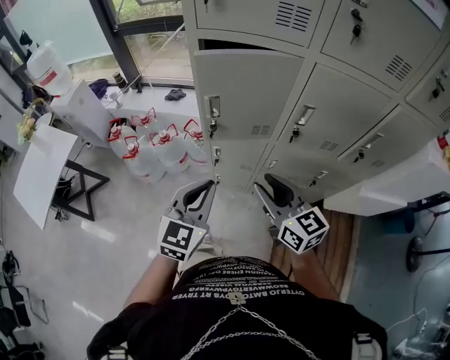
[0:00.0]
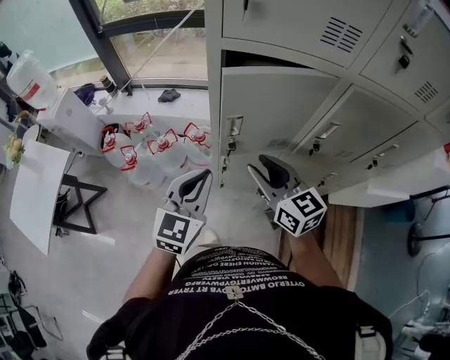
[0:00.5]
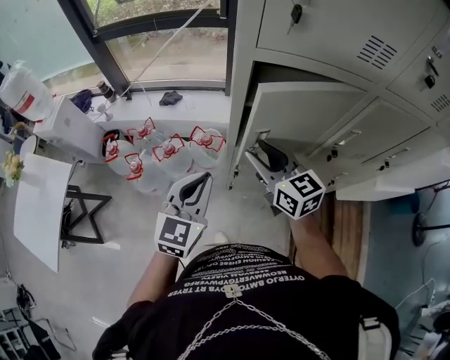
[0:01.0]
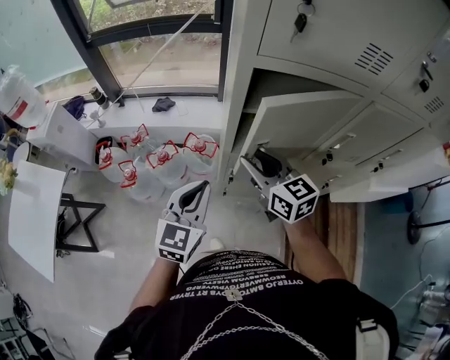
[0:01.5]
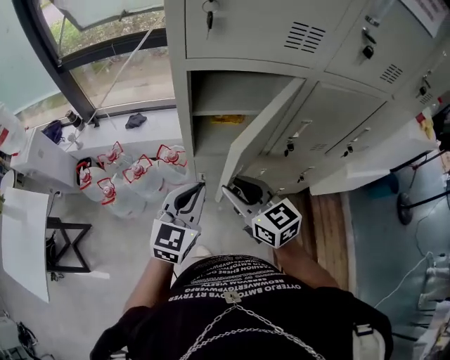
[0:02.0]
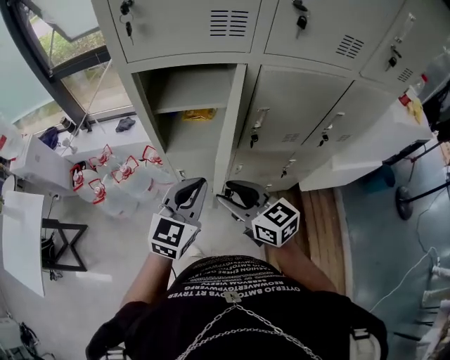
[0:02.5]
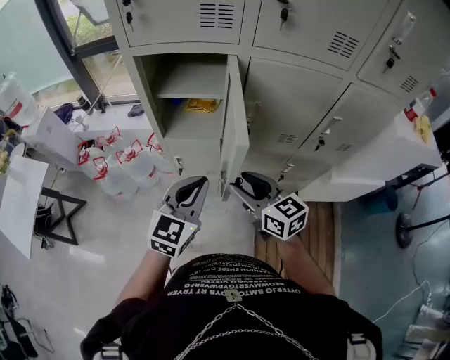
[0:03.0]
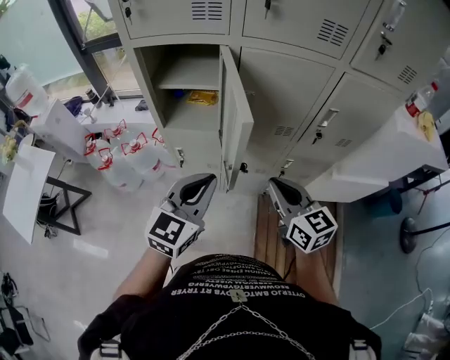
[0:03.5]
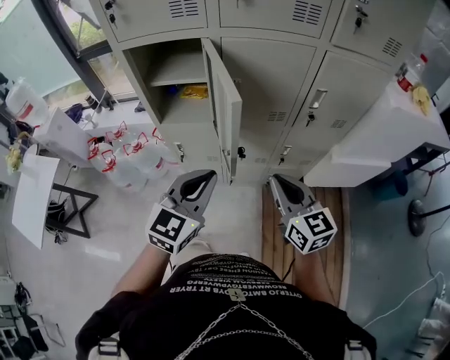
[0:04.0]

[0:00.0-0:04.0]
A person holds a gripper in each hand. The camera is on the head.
0:00.0 to 0:02.0: The right gripper shifts approximately 20 cm to the left and forward, while the left gripper shifts some 15 cm forward and to the left.
0:02.0 to 0:04.0: Both grippers travel together to the right and backward, approximately 35 cm. The right gripper closes its fingers.

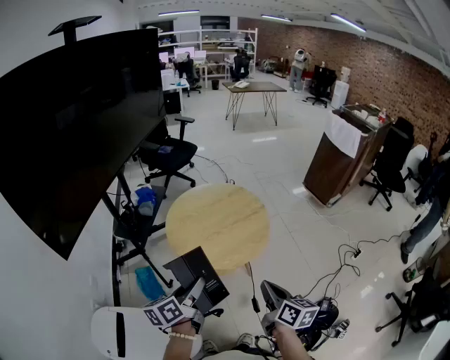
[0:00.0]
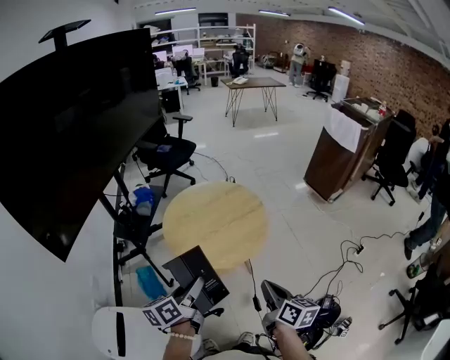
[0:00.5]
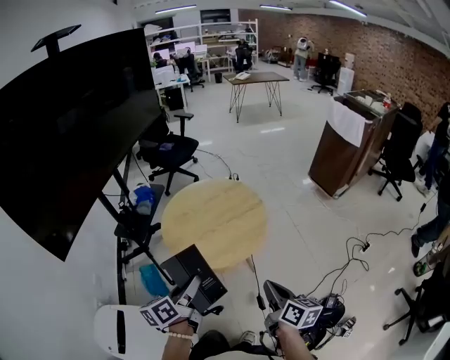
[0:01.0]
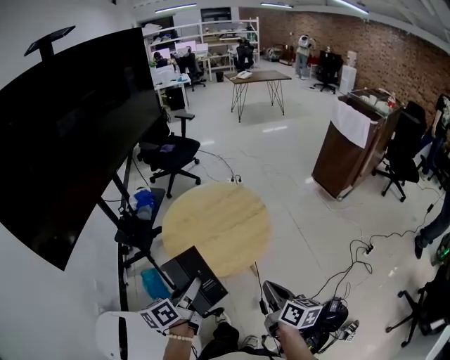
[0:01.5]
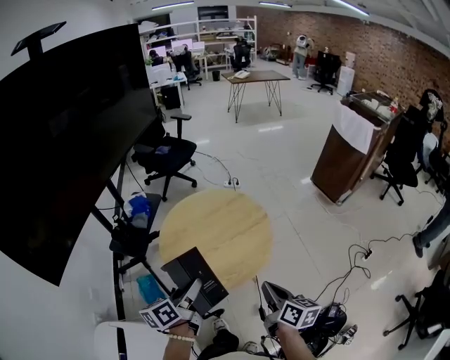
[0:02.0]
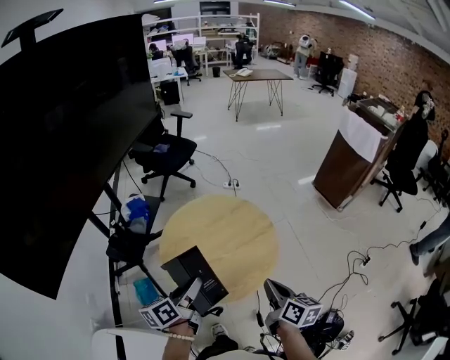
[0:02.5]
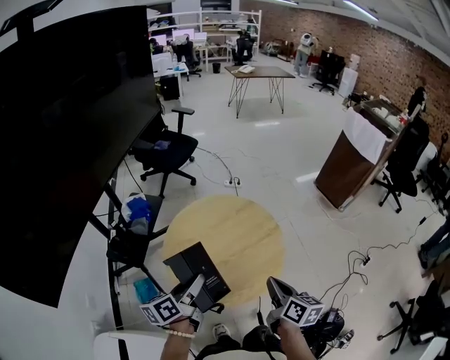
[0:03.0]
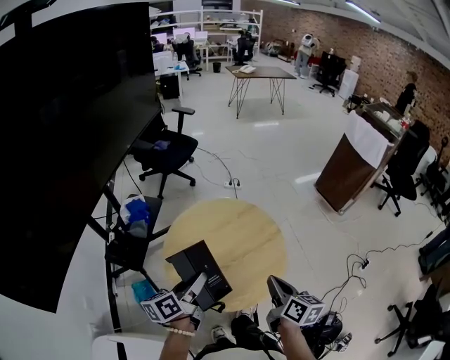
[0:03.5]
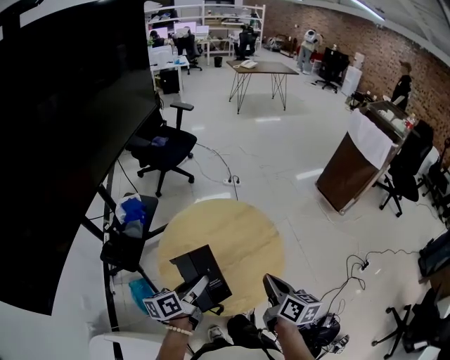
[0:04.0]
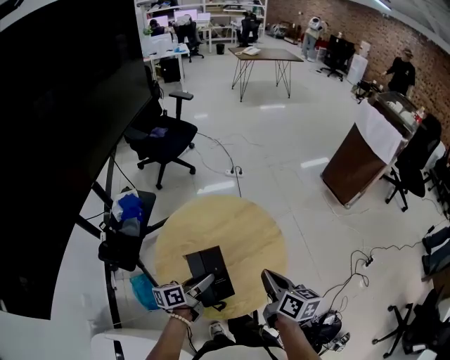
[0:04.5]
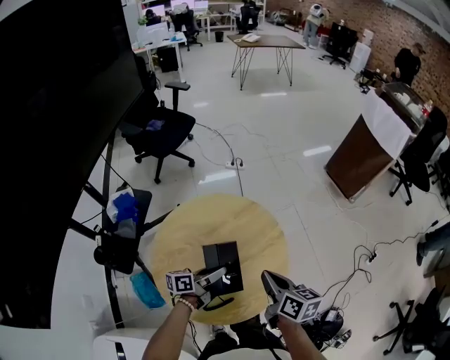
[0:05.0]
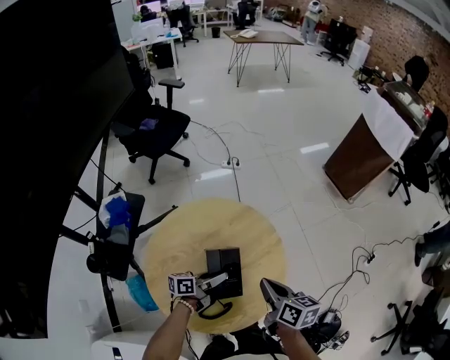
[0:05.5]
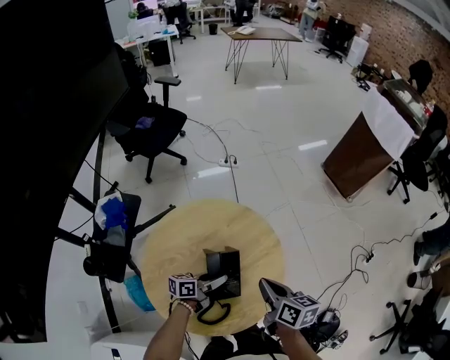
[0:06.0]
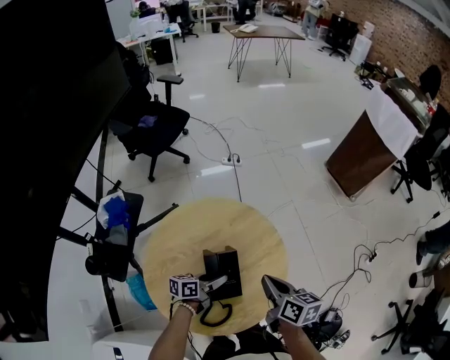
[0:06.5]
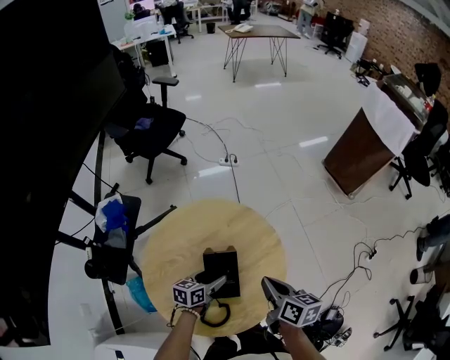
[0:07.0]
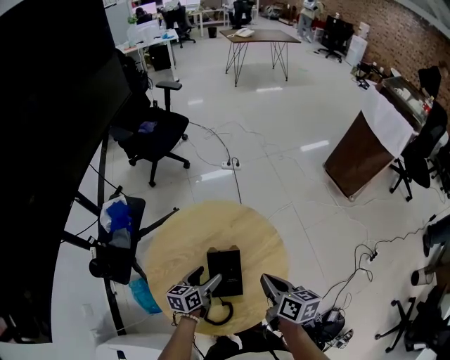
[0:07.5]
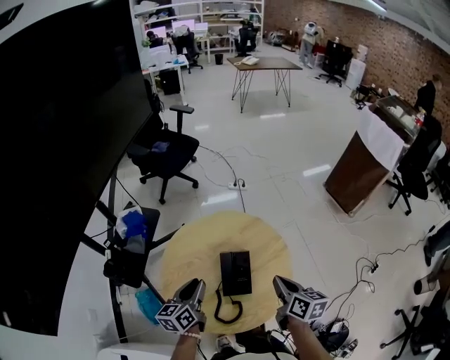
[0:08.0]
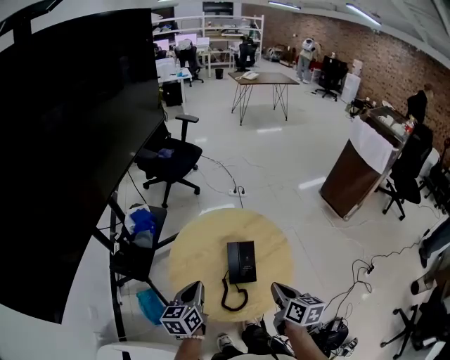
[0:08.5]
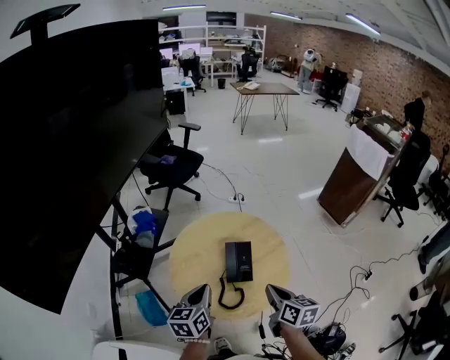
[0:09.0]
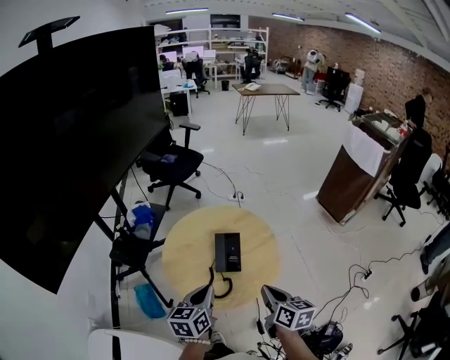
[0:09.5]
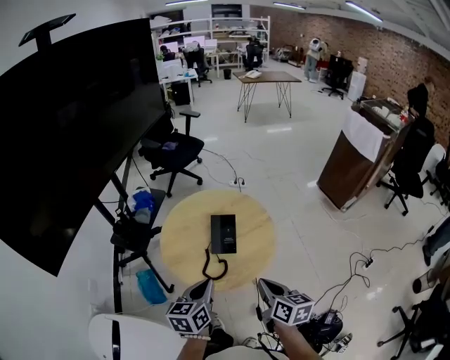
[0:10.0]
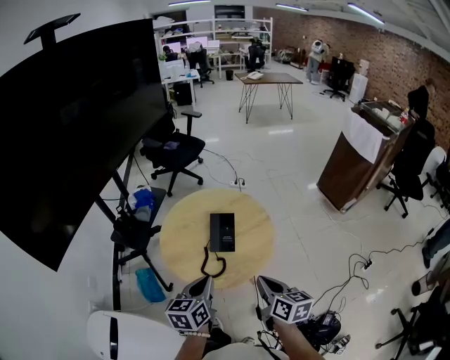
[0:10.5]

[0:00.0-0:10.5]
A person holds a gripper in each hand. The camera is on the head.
0:00.0 to 0:02.0: The grippers both shift forward by some 10 cm.
0:02.0 to 0:04.0: The grippers both shift forward by roughly 15 cm.
0:04.0 to 0:06.5: The right gripper travels forward and downward by about 10 cm. Meanwhile the left gripper is displaced downward and forward by about 25 cm, and swivels about 30 degrees.
0:06.5 to 0:08.5: The right gripper moves backward, about 10 cm; the left gripper is displaced upward, to the left and backward by approximately 25 cm, rotates about 50 degrees, and closes up.
0:08.5 to 0:10.5: The right gripper goes approximately 10 cm backward. Meanwhile the left gripper travels backward and to the right by about 20 cm.

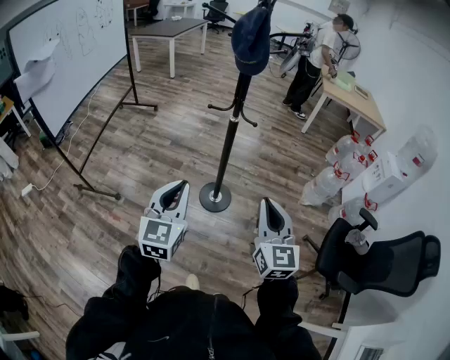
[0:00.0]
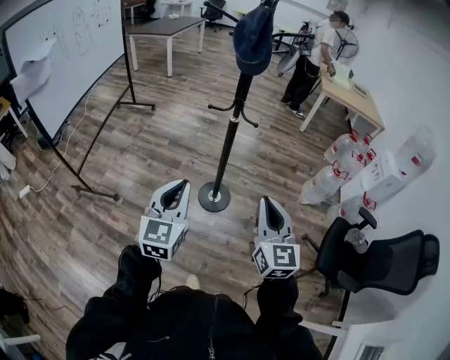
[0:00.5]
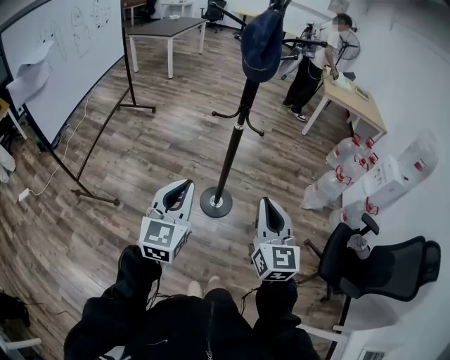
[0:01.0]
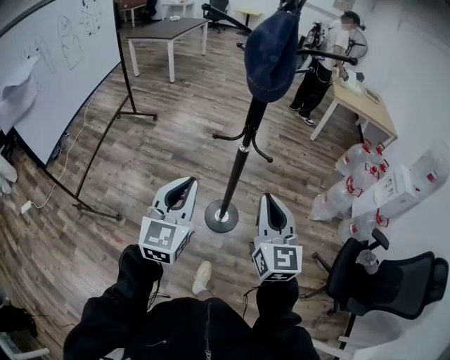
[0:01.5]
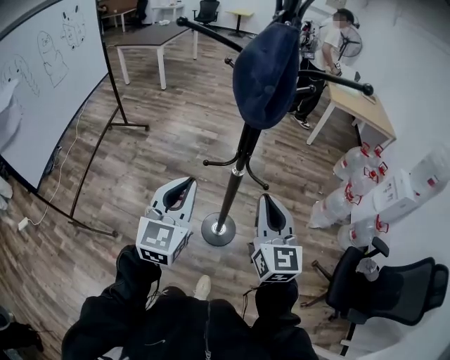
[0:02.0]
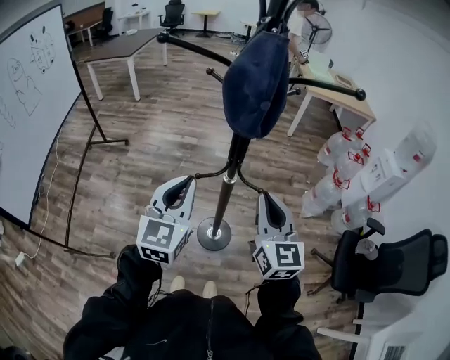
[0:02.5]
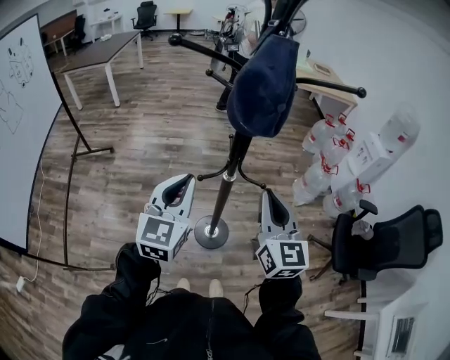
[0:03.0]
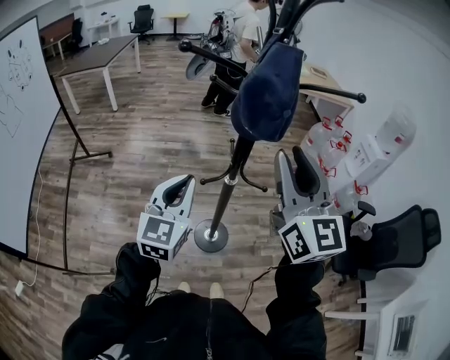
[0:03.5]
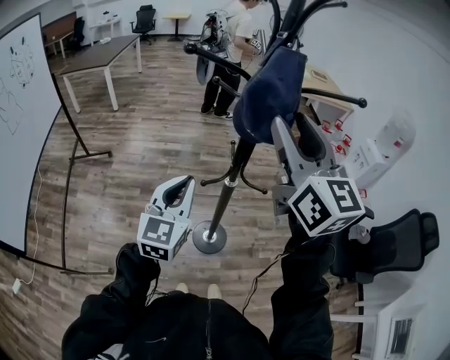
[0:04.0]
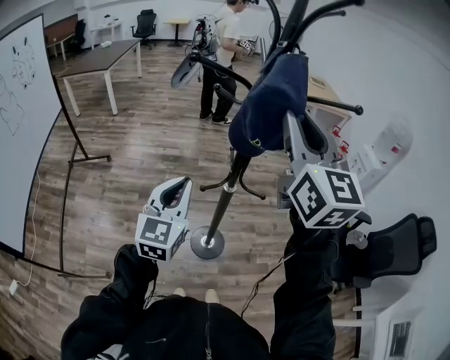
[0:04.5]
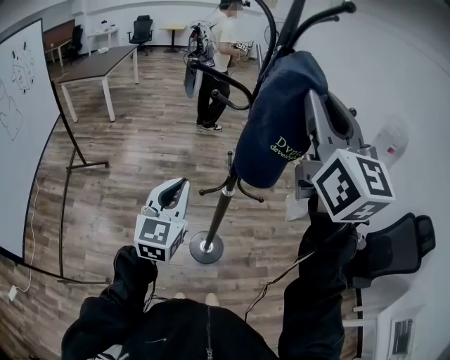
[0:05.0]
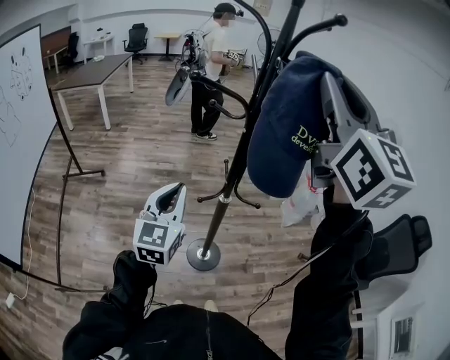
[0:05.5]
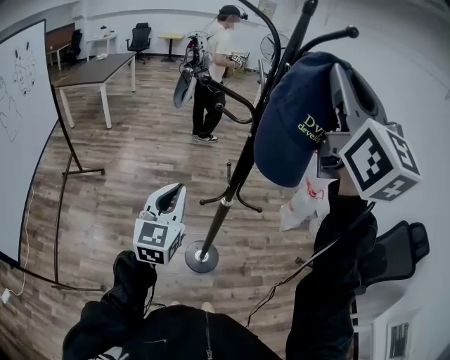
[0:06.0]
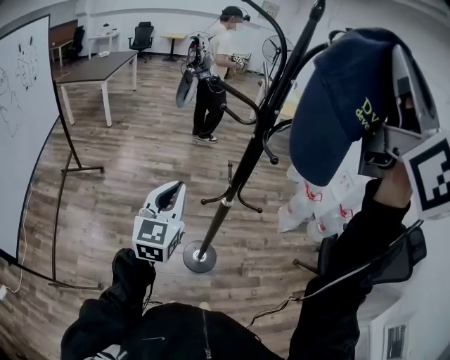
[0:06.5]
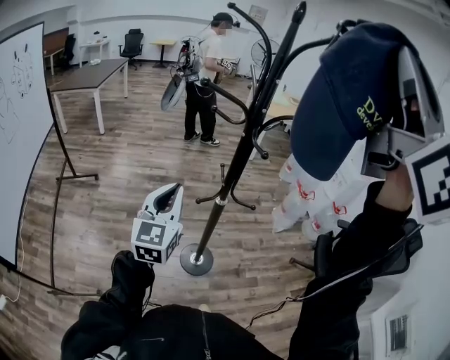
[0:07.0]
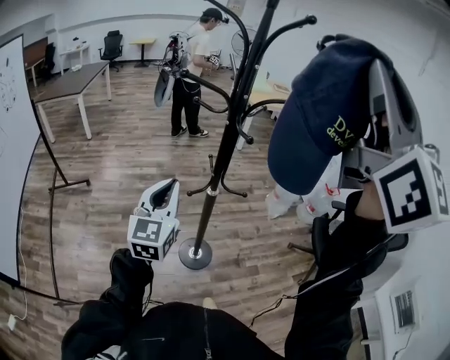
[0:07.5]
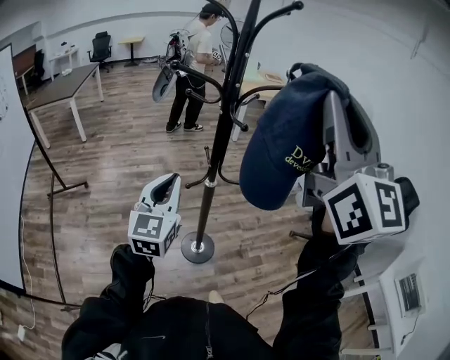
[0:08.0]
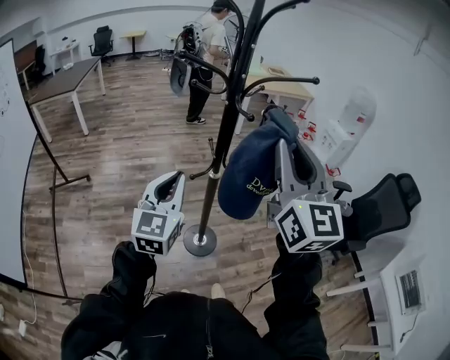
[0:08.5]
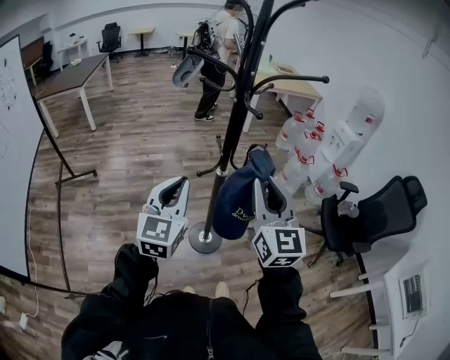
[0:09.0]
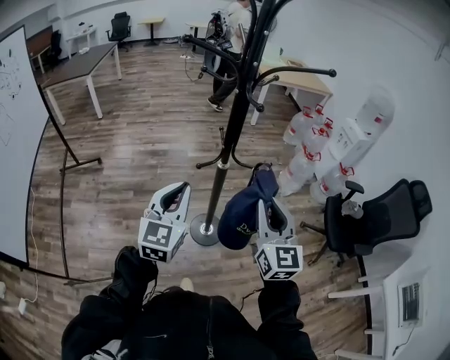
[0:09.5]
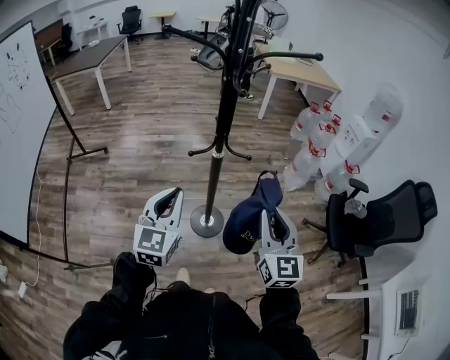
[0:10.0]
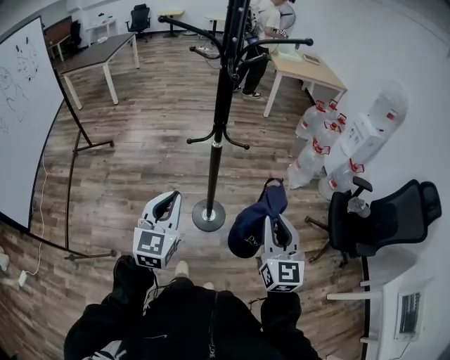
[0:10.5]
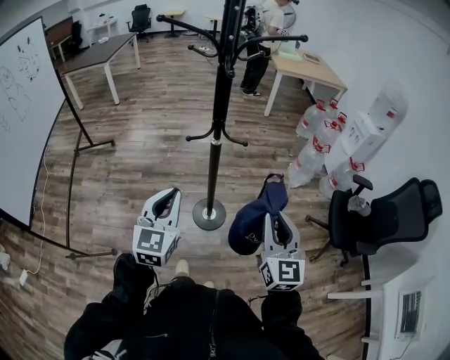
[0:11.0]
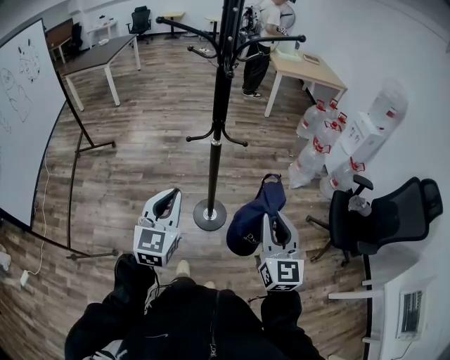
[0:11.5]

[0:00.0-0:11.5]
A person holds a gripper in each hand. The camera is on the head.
0:00.0 to 0:02.0: The grippers both shift forward by approximately 35 cm.
0:02.0 to 0:04.0: The right gripper goes some 25 cm upward, and opens, while the left gripper moves to the left and forward, about 10 cm.
0:04.0 to 0:06.0: The right gripper is displaced upward by some 20 cm, turns by approximately 20 degrees, and closes, while the left gripper changes place by some 5 cm.
0:06.0 to 0:07.5: The right gripper heads backward, covering approximately 15 cm.
0:07.5 to 0:09.5: The left gripper goes roughly 5 cm downward. Meanwhile the right gripper moves downward, about 50 cm, and tips its fingers downward by approximately 30 degrees.
0:09.5 to 0:11.5: The left gripper shifts roughly 15 cm backward and to the right. Meanwhile the right gripper shifts roughly 20 cm to the right, backward and downward.
